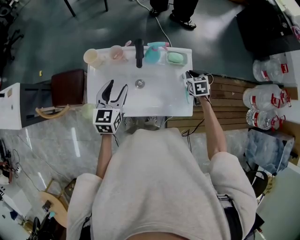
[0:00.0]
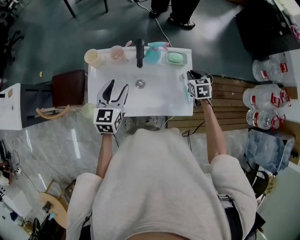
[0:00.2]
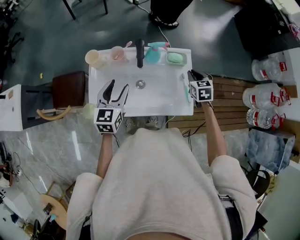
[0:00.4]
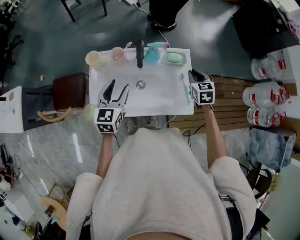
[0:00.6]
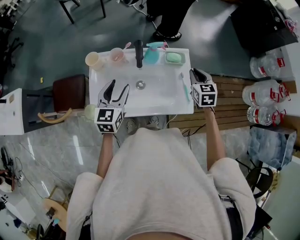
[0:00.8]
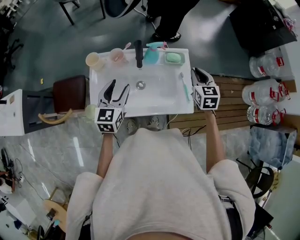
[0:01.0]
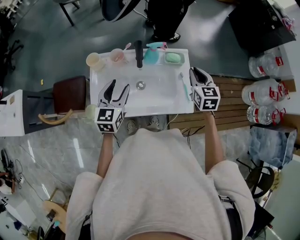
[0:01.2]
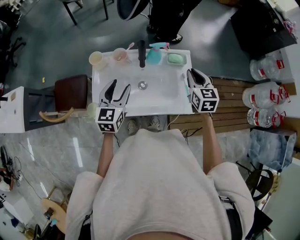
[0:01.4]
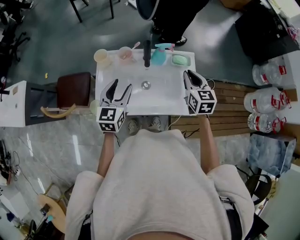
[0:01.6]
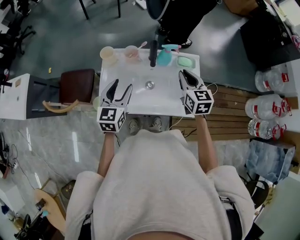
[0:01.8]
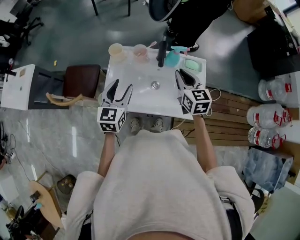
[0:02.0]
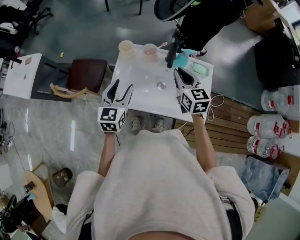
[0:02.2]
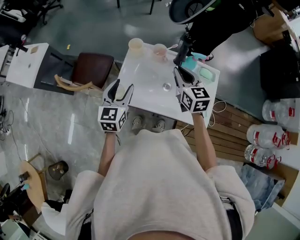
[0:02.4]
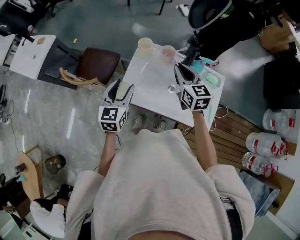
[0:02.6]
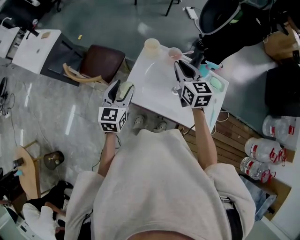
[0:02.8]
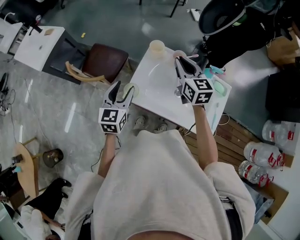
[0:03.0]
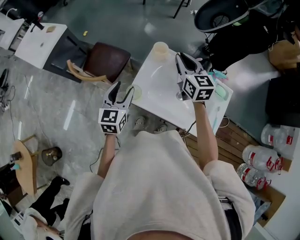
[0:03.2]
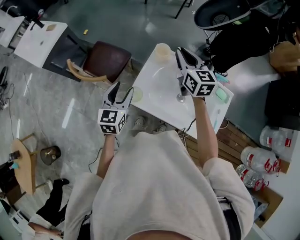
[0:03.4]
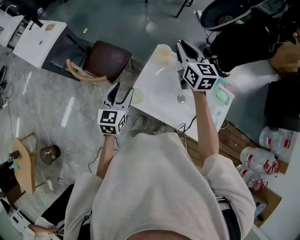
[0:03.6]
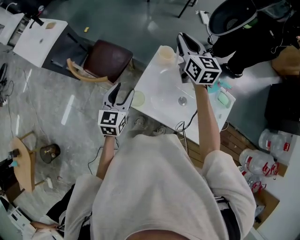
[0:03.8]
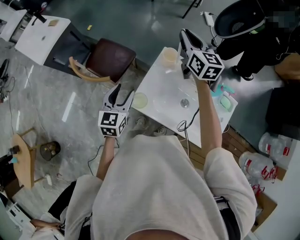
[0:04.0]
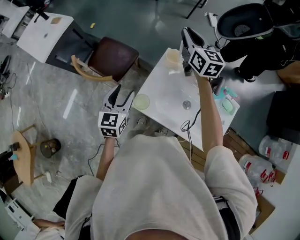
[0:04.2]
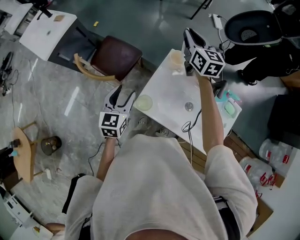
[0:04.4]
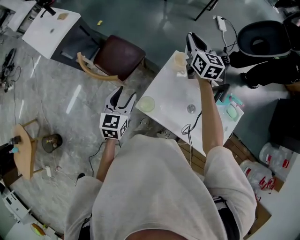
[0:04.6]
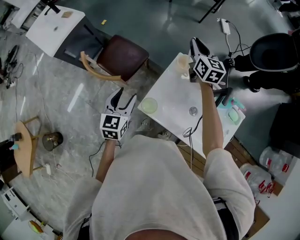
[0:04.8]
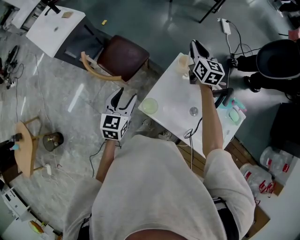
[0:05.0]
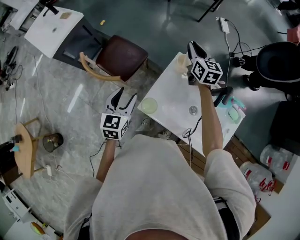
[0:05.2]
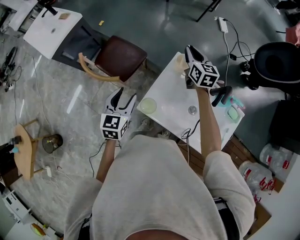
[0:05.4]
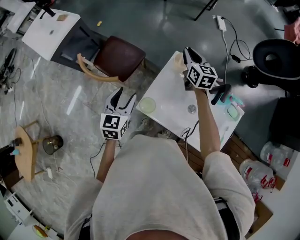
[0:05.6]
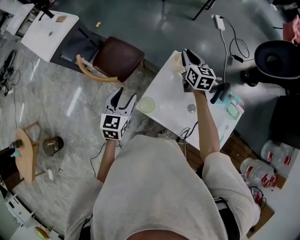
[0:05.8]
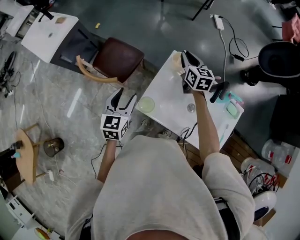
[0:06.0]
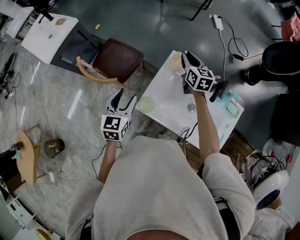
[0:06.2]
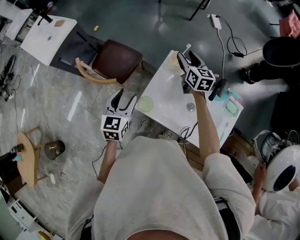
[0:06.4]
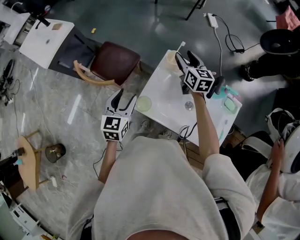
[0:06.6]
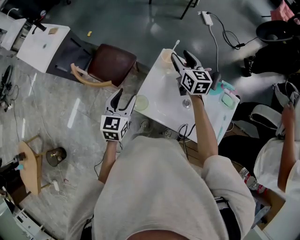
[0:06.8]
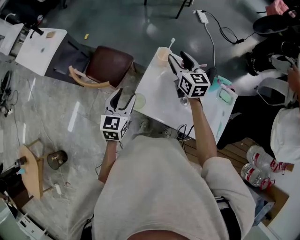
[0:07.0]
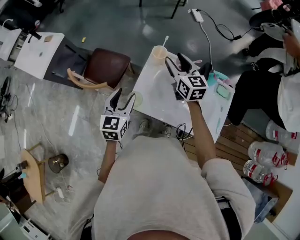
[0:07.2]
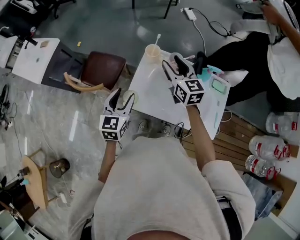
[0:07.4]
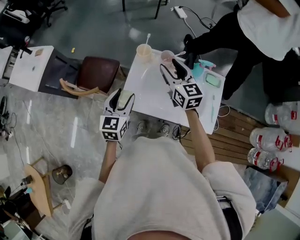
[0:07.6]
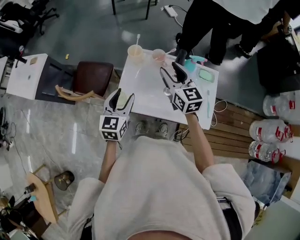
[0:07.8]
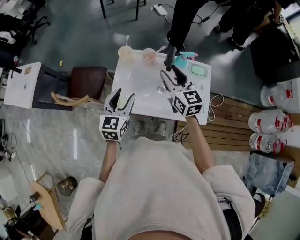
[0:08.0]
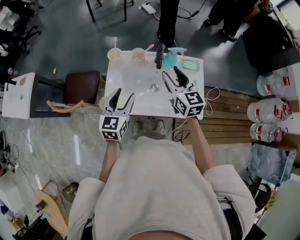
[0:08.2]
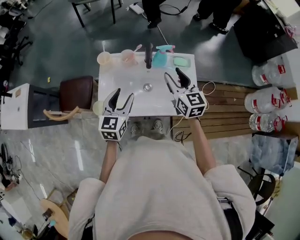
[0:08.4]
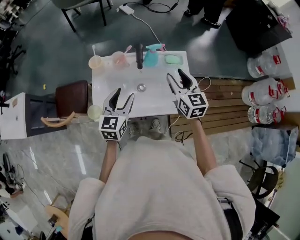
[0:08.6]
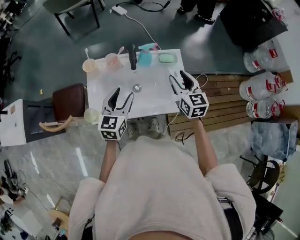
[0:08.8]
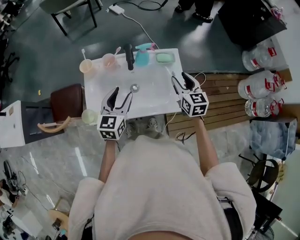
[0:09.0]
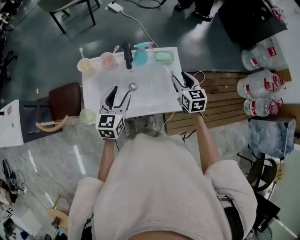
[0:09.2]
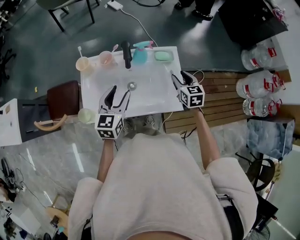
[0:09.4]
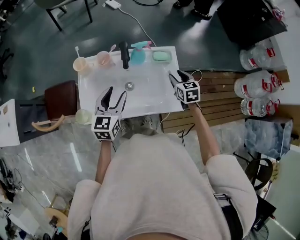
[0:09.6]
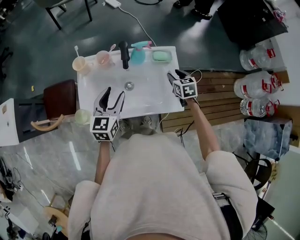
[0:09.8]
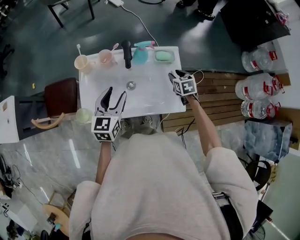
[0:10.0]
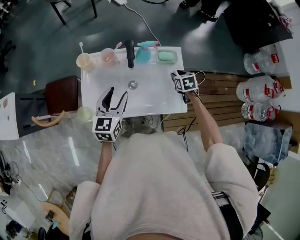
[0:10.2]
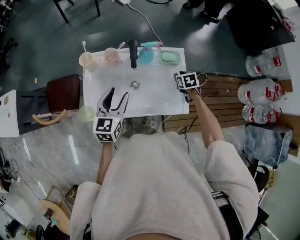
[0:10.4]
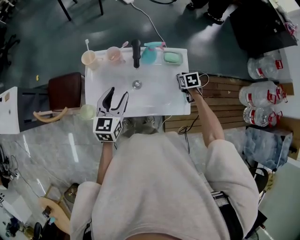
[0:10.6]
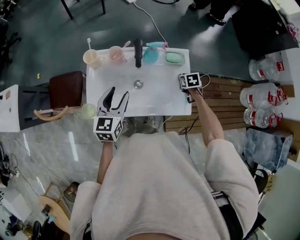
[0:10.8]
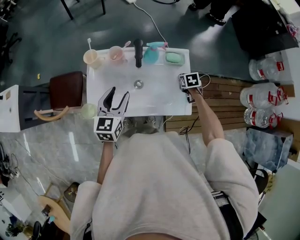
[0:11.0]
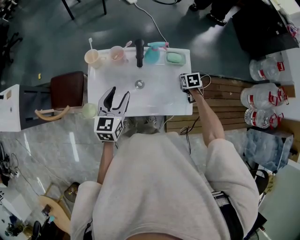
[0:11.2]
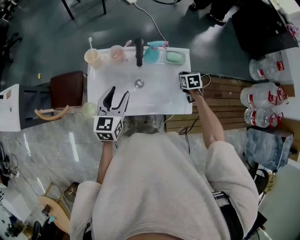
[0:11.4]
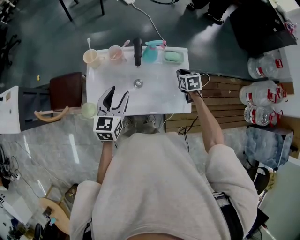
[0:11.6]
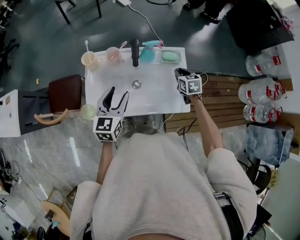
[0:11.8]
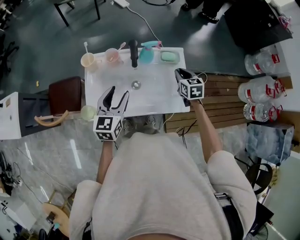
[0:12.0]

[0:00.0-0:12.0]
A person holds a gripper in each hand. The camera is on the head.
0:00.0 to 0:01.6: The right gripper shifts some 20 cm upward and to the left, and swivels about 30 degrees.
0:01.6 to 0:03.0: The right gripper ends up about 30 cm from where it was, and turns by about 30 degrees; the left gripper shifts by some 20 cm, and swivels roughly 30 degrees.
0:03.0 to 0:04.4: The right gripper goes roughly 20 cm forward, while the left gripper is displaced to the left and forward by about 10 cm.
0:04.4 to 0:06.0: The right gripper shifts some 10 cm downward.
0:06.0 to 0:07.6: The left gripper goes some 10 cm to the right and backward. The right gripper shifts approximately 20 cm backward and upward, and opens its fingers.
0:07.6 to 0:09.0: The left gripper shifts by roughly 20 cm, and rotates approximately 20 degrees, while the right gripper moves roughly 35 cm, and changes its angle by roughly 30 degrees.
0:09.0 to 0:10.4: The right gripper shifts about 20 cm downward, and tilts its fingers approximately 40 degrees downward.
0:10.4 to 0:12.0: The right gripper shifts about 10 cm upward, and rotates some 20 degrees.

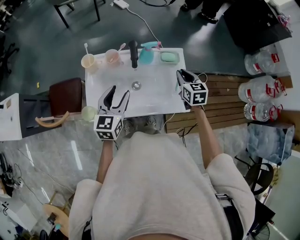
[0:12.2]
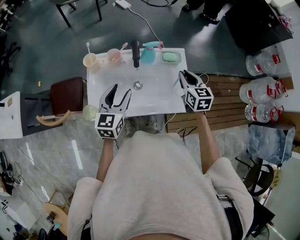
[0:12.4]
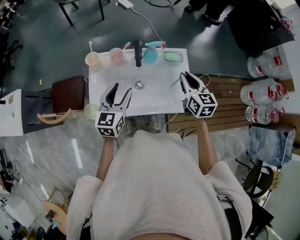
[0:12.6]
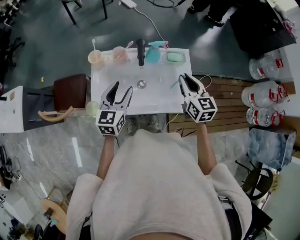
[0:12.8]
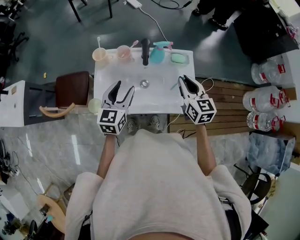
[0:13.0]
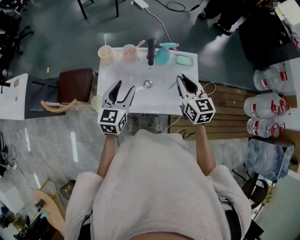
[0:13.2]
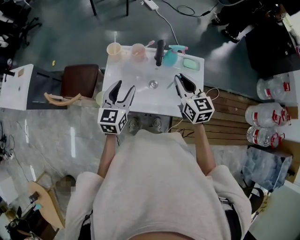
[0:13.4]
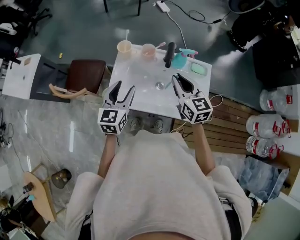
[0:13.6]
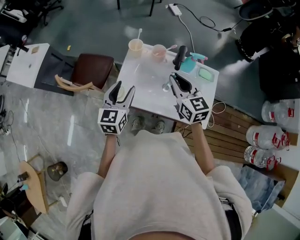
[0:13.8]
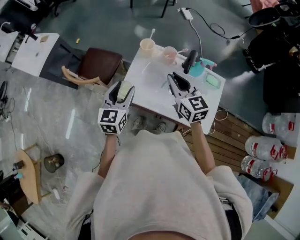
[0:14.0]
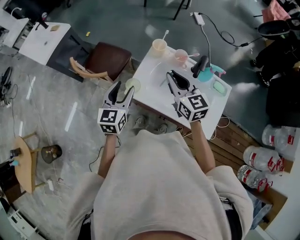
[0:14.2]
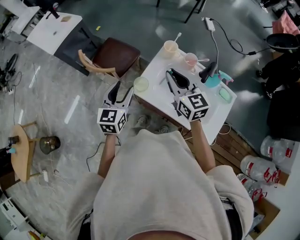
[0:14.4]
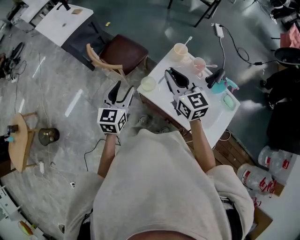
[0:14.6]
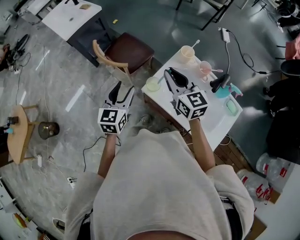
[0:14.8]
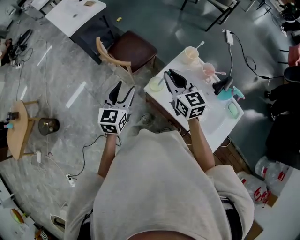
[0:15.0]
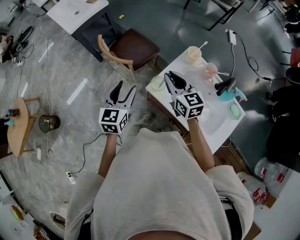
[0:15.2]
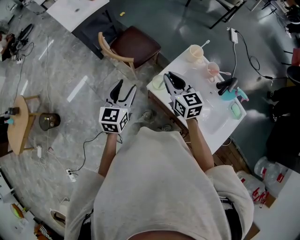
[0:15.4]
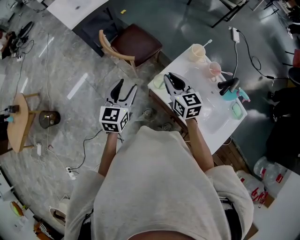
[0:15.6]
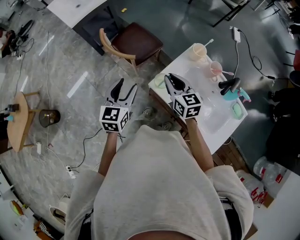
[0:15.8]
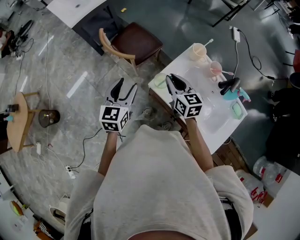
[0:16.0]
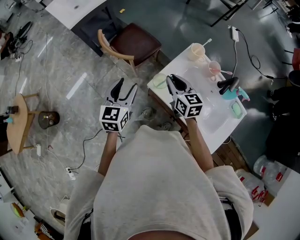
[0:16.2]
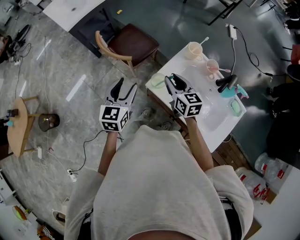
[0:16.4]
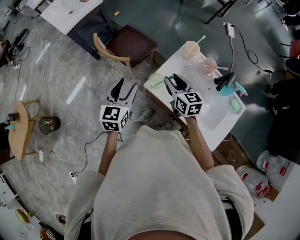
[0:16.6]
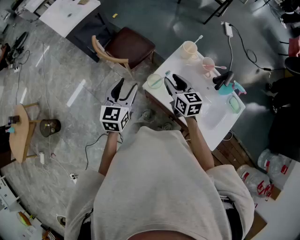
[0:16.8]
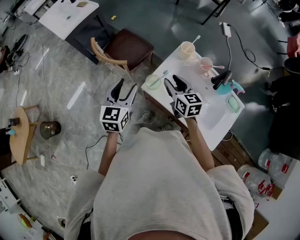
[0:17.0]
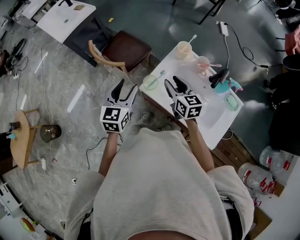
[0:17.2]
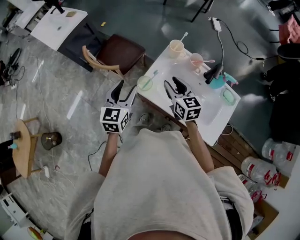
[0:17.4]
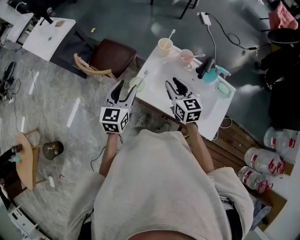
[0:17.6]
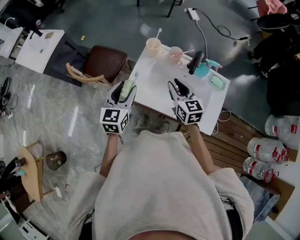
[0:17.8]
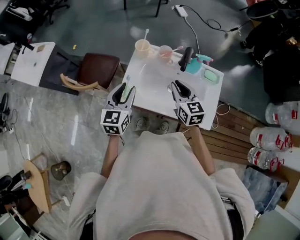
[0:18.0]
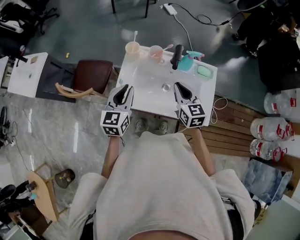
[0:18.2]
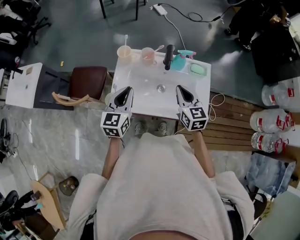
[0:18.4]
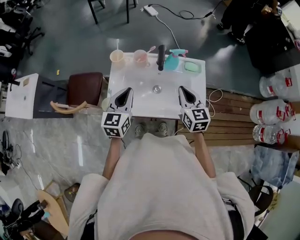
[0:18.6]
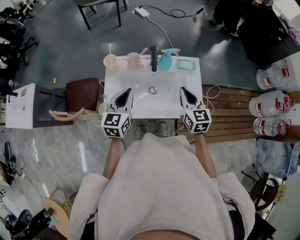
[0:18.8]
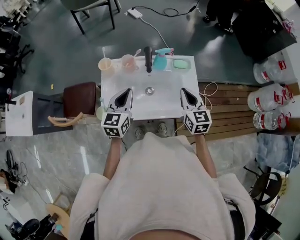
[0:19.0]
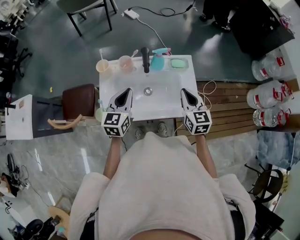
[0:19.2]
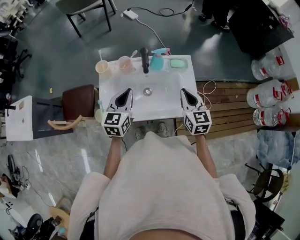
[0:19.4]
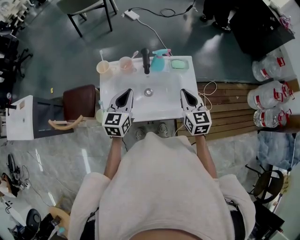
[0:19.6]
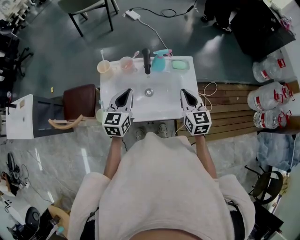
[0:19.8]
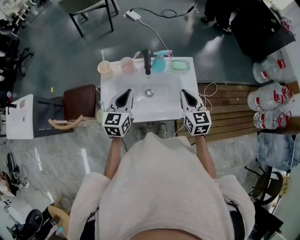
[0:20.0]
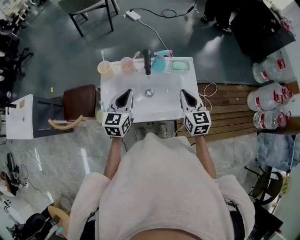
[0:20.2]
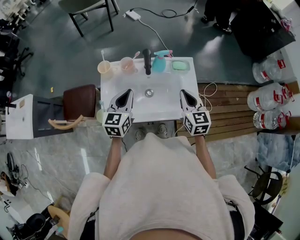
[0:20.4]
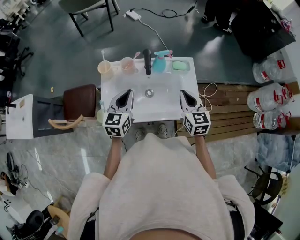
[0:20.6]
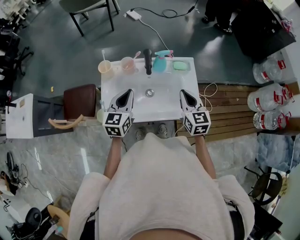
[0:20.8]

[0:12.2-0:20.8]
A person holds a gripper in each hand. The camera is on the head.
0:12.2 to 0:13.6: The right gripper shifts some 20 cm to the left and upward, and changes its angle by some 30 degrees, while the left gripper heads to the left, covering some 10 cm.
0:13.6 to 0:15.0: The left gripper shifts by approximately 25 cm, and swivels some 30 degrees; the right gripper shifts by some 30 cm, and turns by approximately 40 degrees.
0:15.0 to 0:16.6: The right gripper travels downward by approximately 10 cm.
0:16.6 to 0:18.0: The right gripper moves roughly 20 cm, and swivels about 30 degrees. The left gripper shifts by approximately 15 cm, and rotates approximately 20 degrees.
0:18.0 to 0:19.4: The left gripper goes roughly 15 cm to the right and forward, swivels about 20 degrees, and closes its fingers. The right gripper travels to the right by about 20 cm, and changes its angle by approximately 30 degrees.
0:19.4 to 0:20.8: Both grippers stay about where they are.

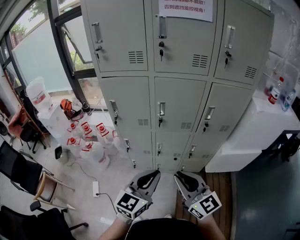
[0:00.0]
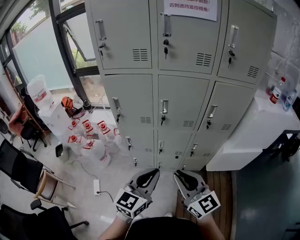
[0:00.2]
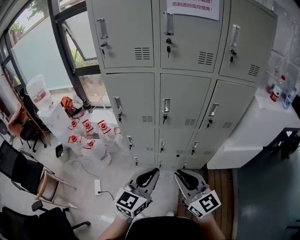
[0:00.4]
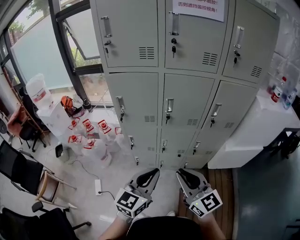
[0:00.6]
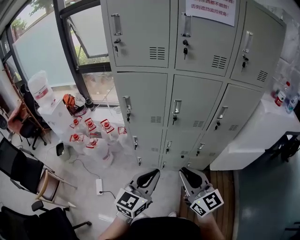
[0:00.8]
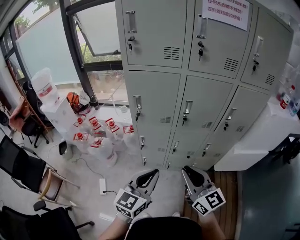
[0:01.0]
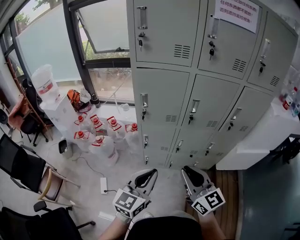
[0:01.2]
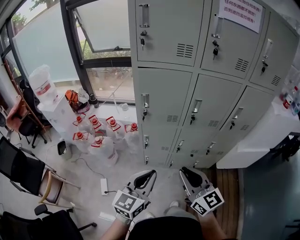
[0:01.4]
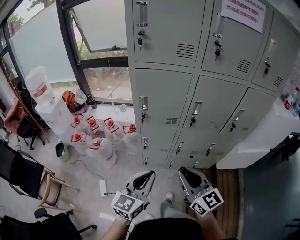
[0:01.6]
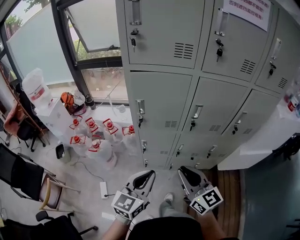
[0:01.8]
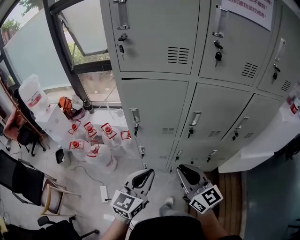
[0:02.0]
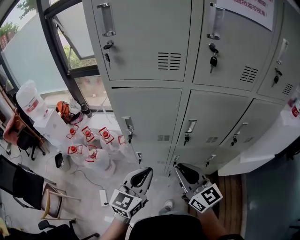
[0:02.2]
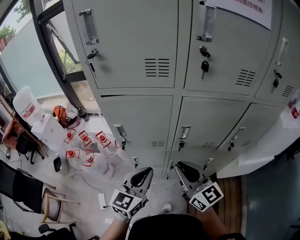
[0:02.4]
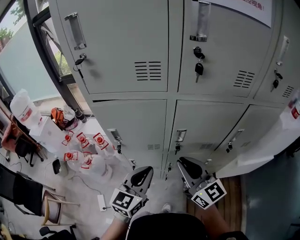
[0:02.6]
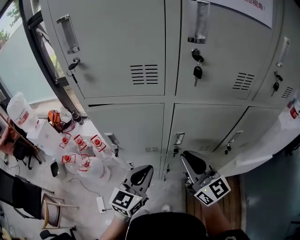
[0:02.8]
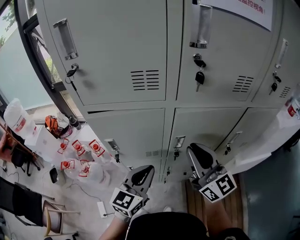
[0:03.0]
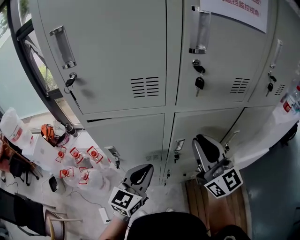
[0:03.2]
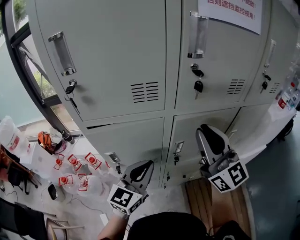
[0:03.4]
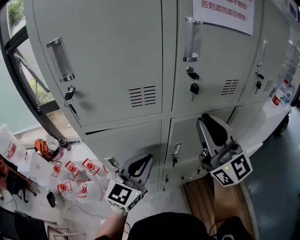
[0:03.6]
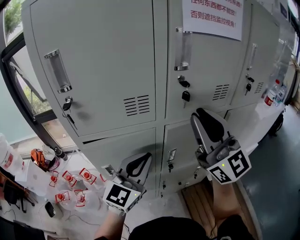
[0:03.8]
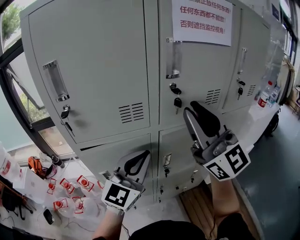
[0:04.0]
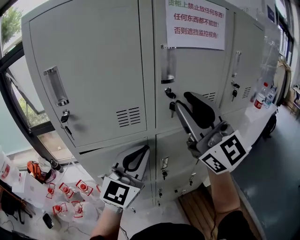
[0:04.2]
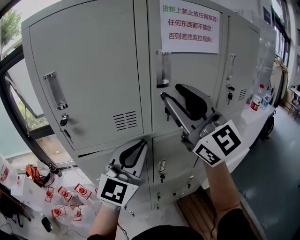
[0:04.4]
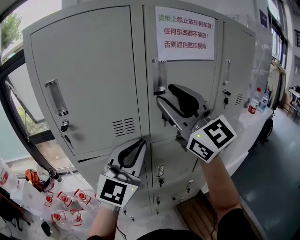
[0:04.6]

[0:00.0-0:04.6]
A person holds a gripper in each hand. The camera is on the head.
0:00.0 to 0:01.6: Both grippers move to the left, approximately 20 cm.
0:01.6 to 0:03.0: The right gripper travels forward, to the right and upward by approximately 30 cm, while the left gripper travels forward and to the right by about 25 cm.
0:03.0 to 0:04.6: The grippers both shift upward by roughly 30 cm. The right gripper turns by approximately 30 degrees, and opens. Meanwhile the left gripper swivels approximately 40 degrees.
